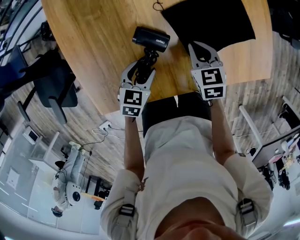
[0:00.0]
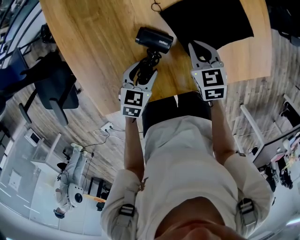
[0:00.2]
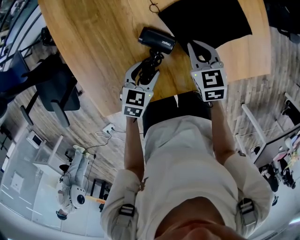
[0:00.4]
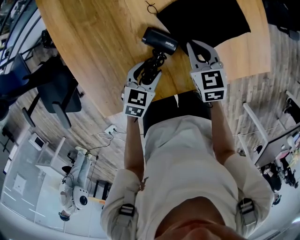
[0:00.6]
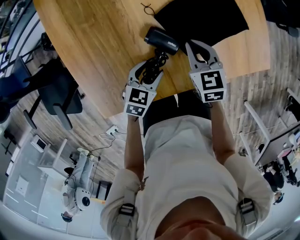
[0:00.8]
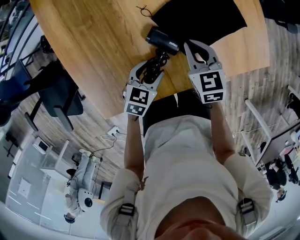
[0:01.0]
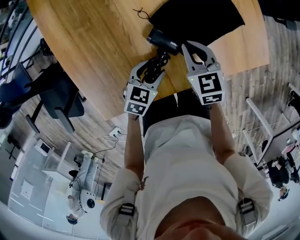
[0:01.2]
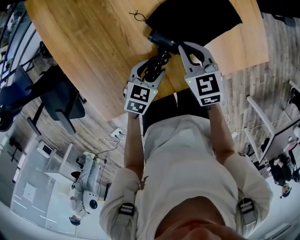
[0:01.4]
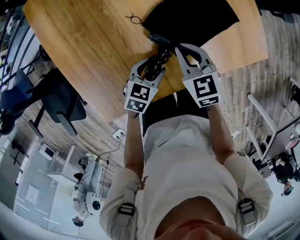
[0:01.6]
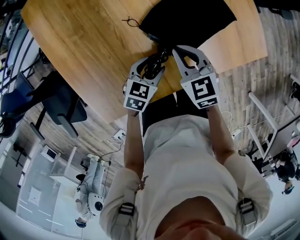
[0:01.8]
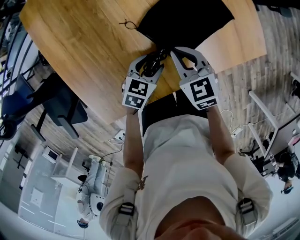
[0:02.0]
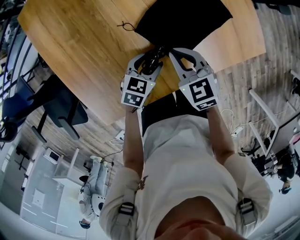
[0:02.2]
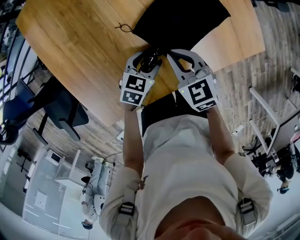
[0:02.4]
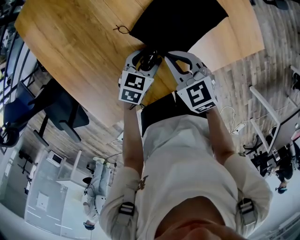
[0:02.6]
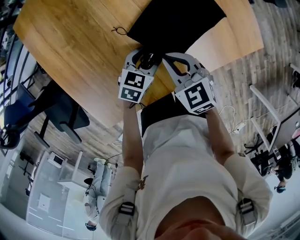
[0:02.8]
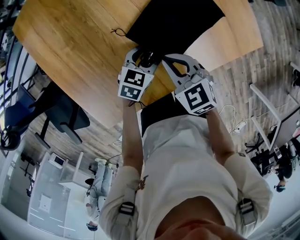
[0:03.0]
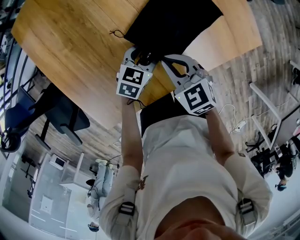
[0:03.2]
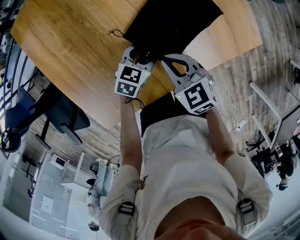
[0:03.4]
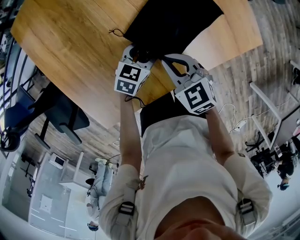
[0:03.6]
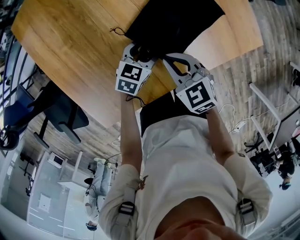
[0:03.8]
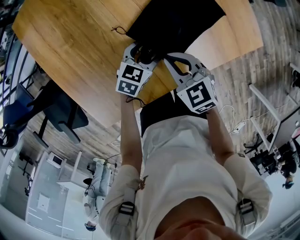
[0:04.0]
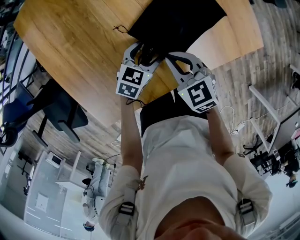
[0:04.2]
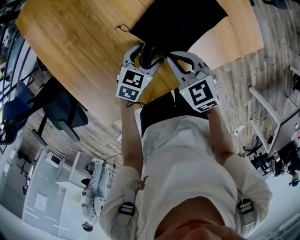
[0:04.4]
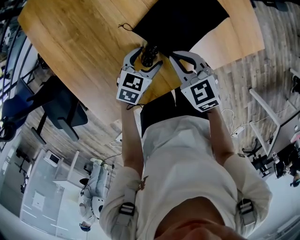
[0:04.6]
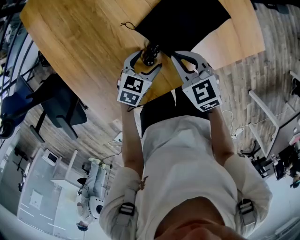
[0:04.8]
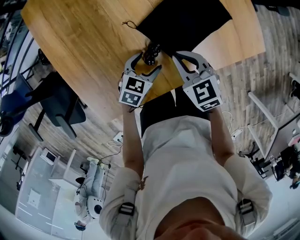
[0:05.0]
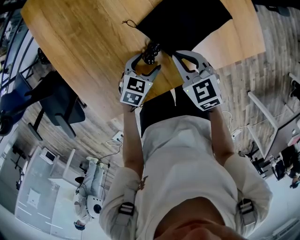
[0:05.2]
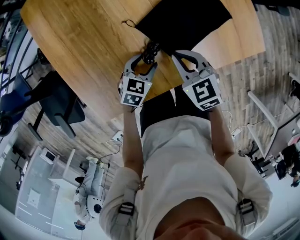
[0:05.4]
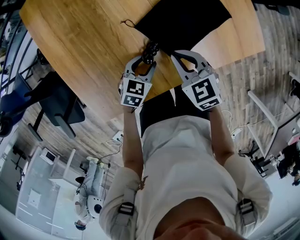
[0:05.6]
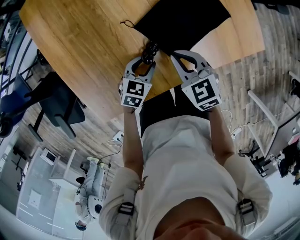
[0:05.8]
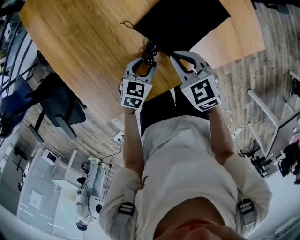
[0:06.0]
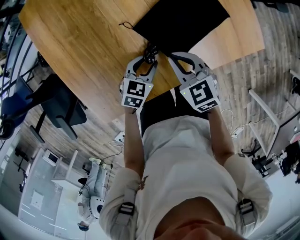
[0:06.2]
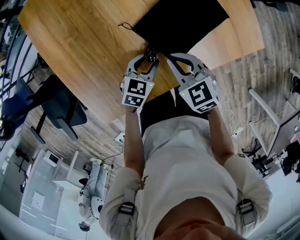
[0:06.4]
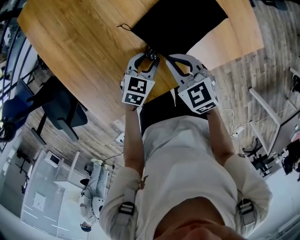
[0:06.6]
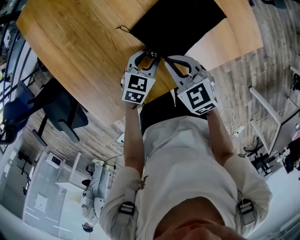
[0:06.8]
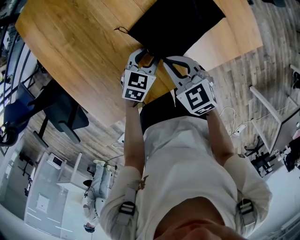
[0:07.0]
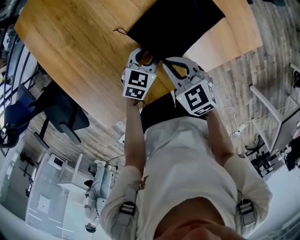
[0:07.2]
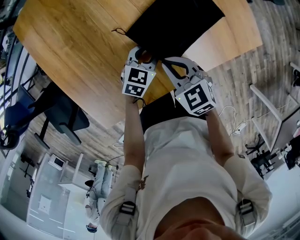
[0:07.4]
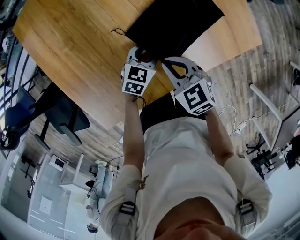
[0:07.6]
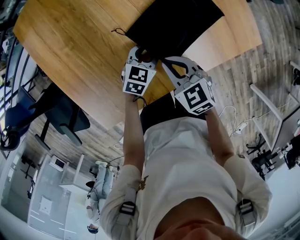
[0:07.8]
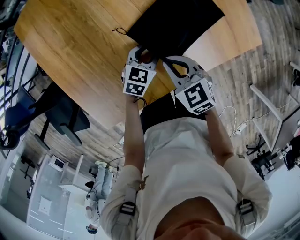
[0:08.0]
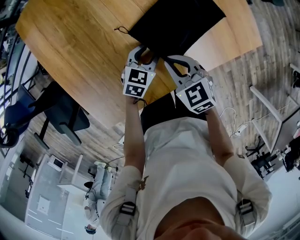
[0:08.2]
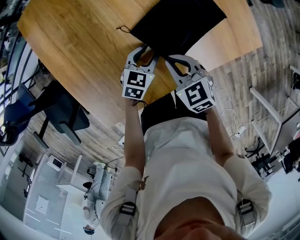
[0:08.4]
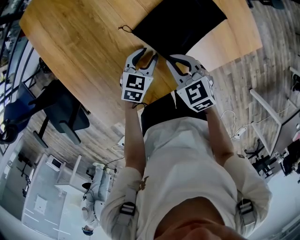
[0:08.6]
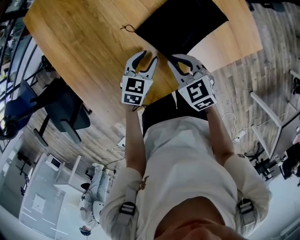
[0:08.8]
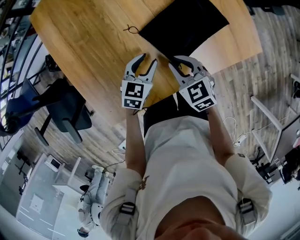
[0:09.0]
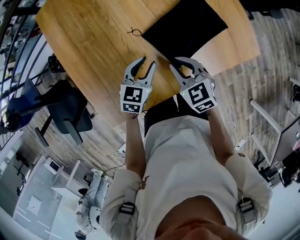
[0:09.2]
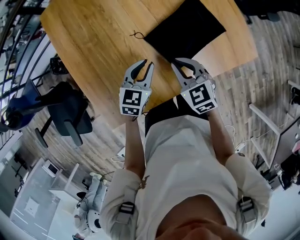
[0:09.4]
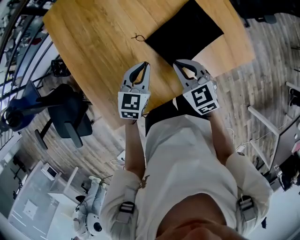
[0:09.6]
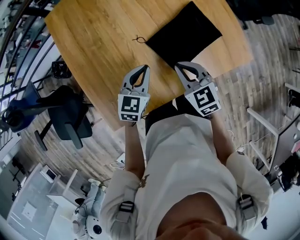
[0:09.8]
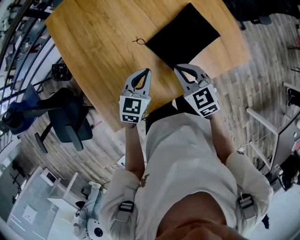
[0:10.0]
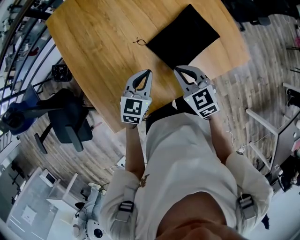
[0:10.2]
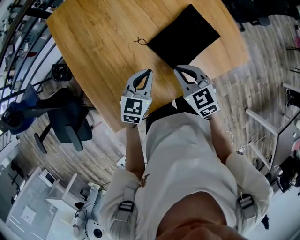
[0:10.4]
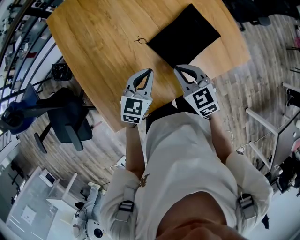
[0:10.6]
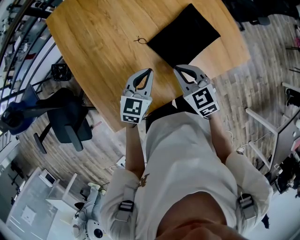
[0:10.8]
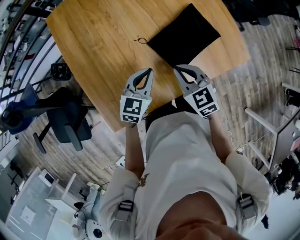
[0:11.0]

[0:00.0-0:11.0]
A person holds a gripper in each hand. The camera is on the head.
0:00.0 to 0:01.6: The right gripper moves some 5 cm; the left gripper travels to the right by roughly 10 cm.
0:01.6 to 0:03.2: The left gripper shifts some 5 cm forward.
0:03.2 to 0:04.8: The left gripper shifts roughly 5 cm backward.
0:04.8 to 0:06.2: The left gripper closes its fingers.
0:06.2 to 0:07.8: The left gripper goes about 5 cm forward.
0:07.8 to 0:09.4: The right gripper heads upward, covering roughly 5 cm; the left gripper travels upward and to the left by some 15 cm.
0:09.4 to 0:11.0: The left gripper goes roughly 5 cm upward.

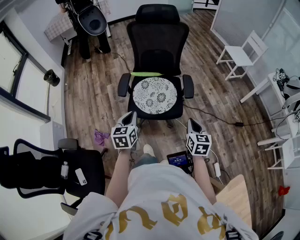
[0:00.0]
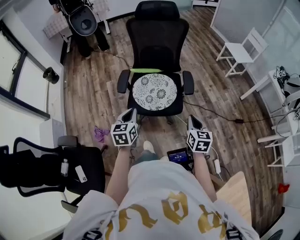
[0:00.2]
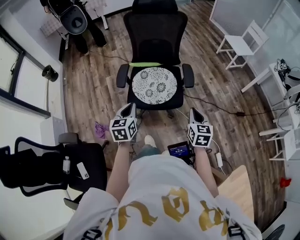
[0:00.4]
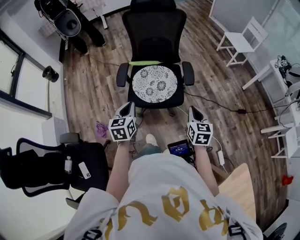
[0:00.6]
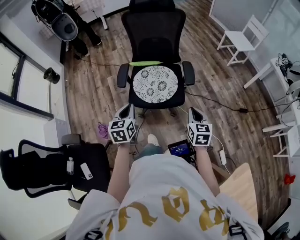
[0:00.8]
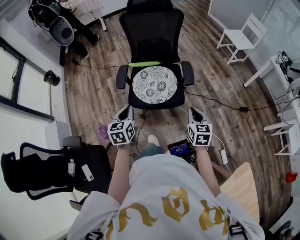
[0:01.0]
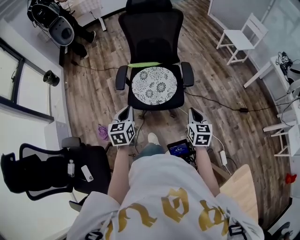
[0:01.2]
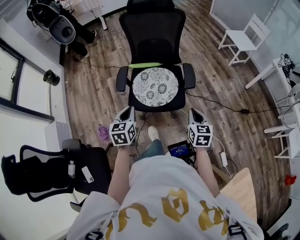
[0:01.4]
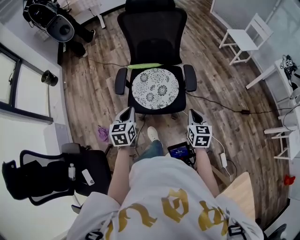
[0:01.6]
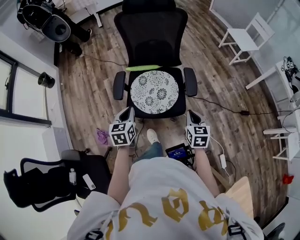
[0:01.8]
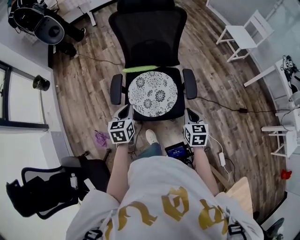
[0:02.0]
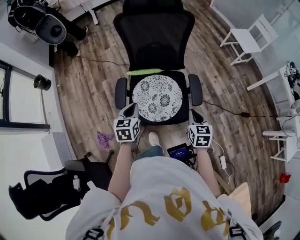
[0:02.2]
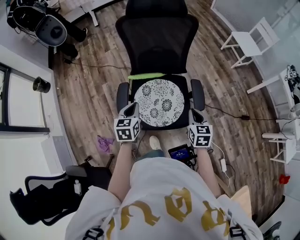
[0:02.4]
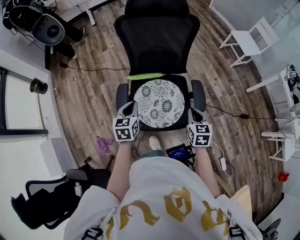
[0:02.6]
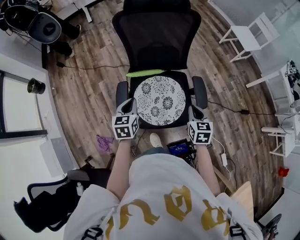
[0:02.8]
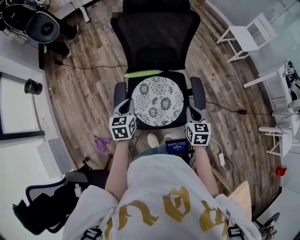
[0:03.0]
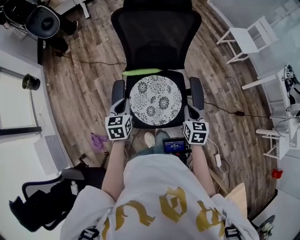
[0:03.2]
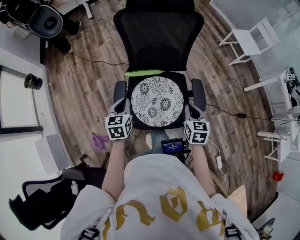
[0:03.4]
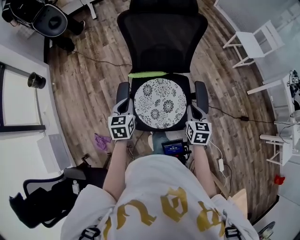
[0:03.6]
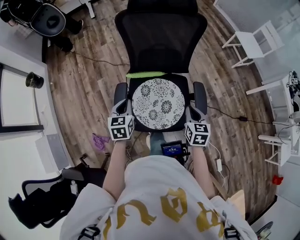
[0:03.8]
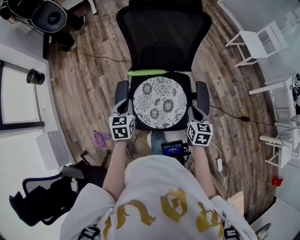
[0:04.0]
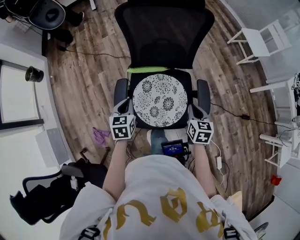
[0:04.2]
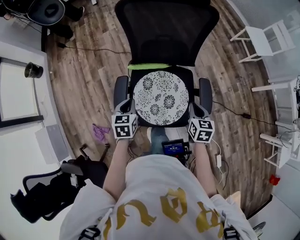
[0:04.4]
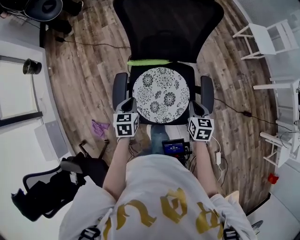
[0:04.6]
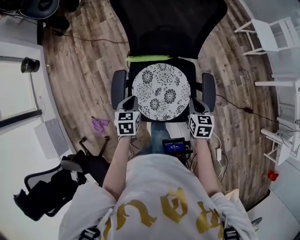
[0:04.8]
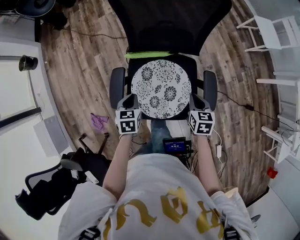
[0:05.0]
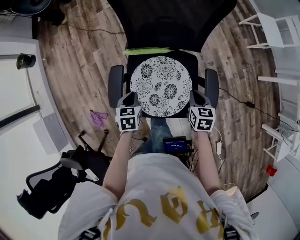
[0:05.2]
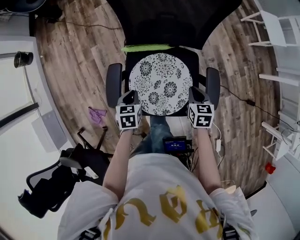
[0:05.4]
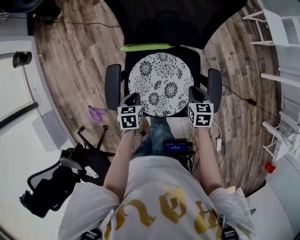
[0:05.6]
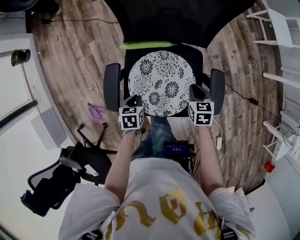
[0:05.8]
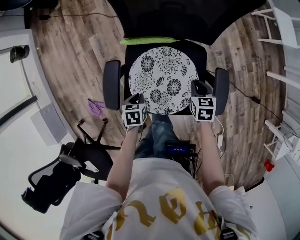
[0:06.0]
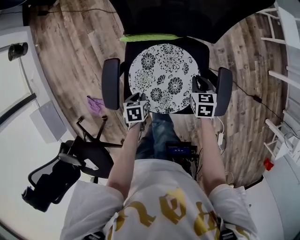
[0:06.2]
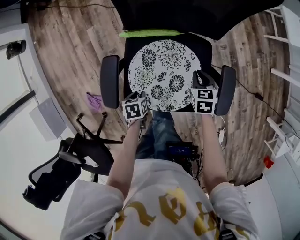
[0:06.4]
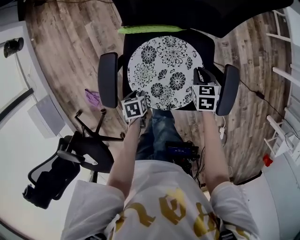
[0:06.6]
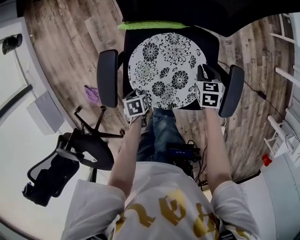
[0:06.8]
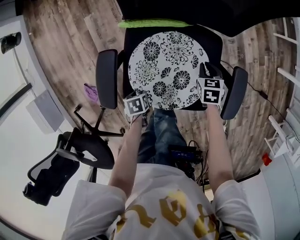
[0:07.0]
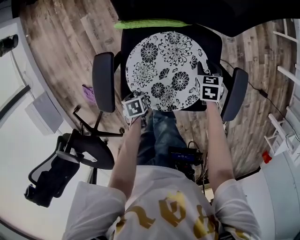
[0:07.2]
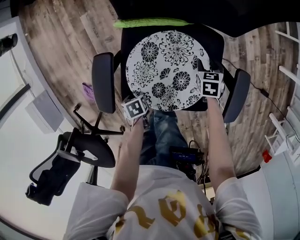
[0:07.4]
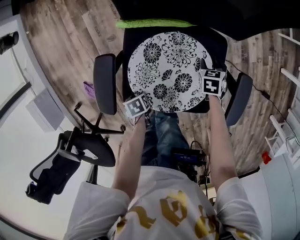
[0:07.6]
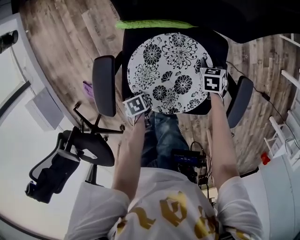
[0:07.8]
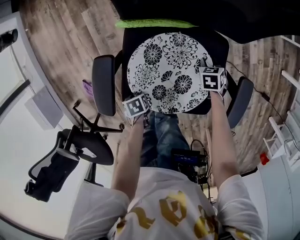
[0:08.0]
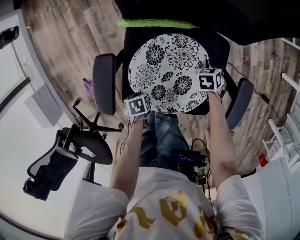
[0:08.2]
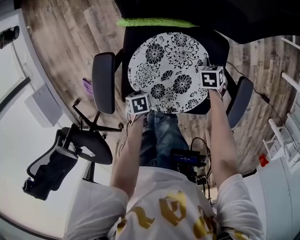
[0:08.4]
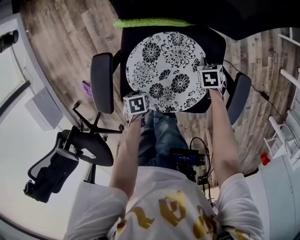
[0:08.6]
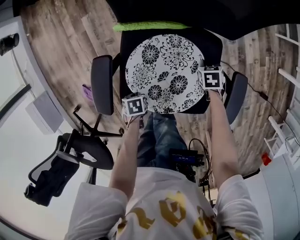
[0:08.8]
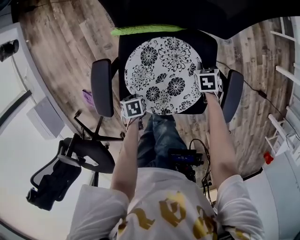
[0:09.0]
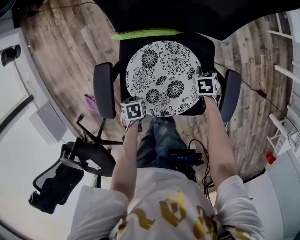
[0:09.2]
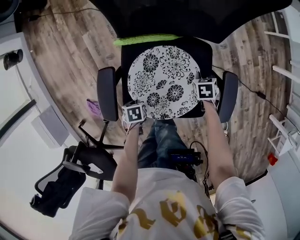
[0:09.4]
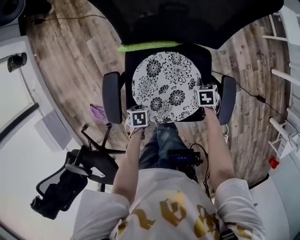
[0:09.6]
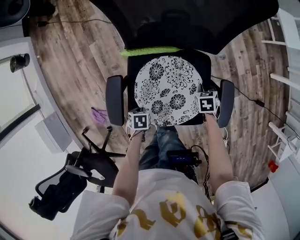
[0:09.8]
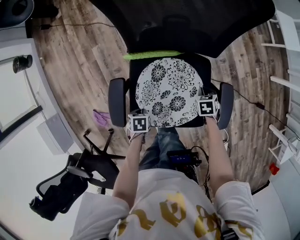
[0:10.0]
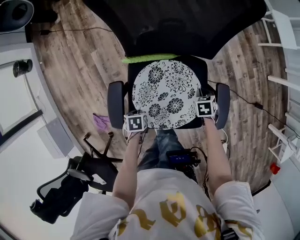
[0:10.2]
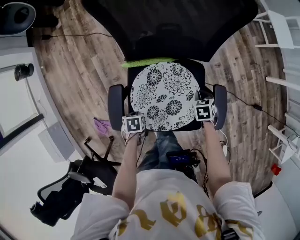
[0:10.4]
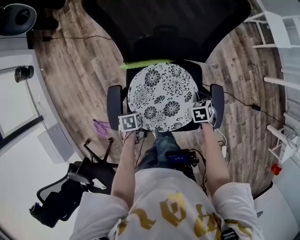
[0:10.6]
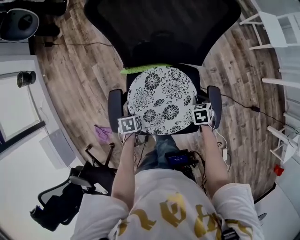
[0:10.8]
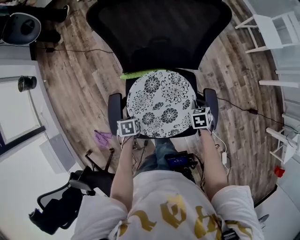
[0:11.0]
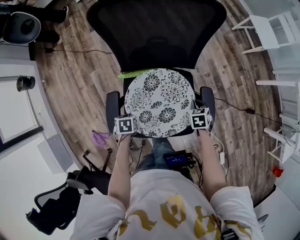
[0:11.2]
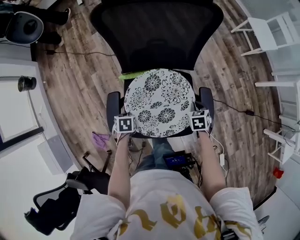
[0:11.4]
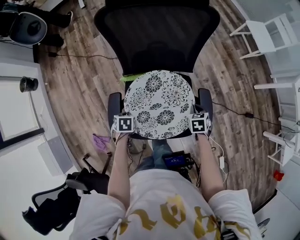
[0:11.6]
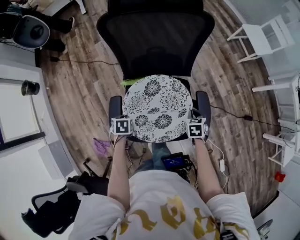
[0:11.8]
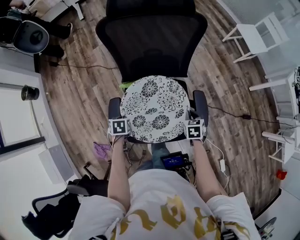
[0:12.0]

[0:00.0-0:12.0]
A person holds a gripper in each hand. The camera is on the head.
0:00.0 to 0:01.6: The two grippers go about 5 cm forward.
0:01.6 to 0:03.0: The left gripper goes some 25 cm forward. The right gripper is displaced forward and to the left by some 20 cm.
0:03.0 to 0:04.4: The left gripper heads downward, covering roughly 5 cm, while the right gripper is displaced forward and downward by roughly 10 cm.
0:04.4 to 0:06.0: The right gripper goes about 20 cm downward and forward; the left gripper shifts about 20 cm downward, and turns by about 30 degrees.
0:06.0 to 0:07.6: The grippers both shift downward by approximately 15 cm. The right gripper opens; the left gripper changes its angle by some 30 degrees, and opens its fingers.
0:07.6 to 0:09.0: The right gripper closes up; the left gripper closes.
0:09.0 to 0:10.4: The grippers both shift upward by some 10 cm.
0:10.4 to 0:12.0: Both grippers move upward, some 15 cm.

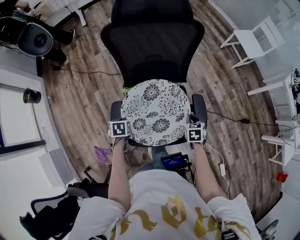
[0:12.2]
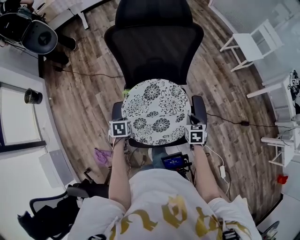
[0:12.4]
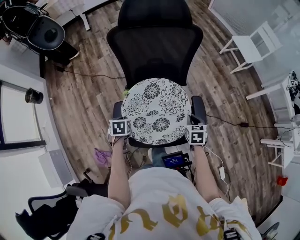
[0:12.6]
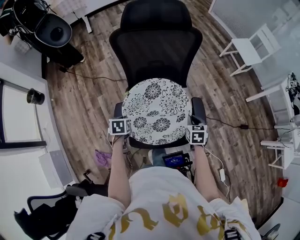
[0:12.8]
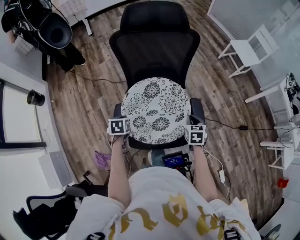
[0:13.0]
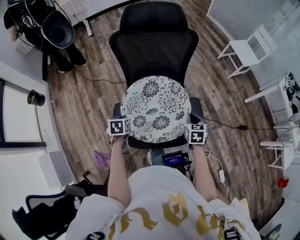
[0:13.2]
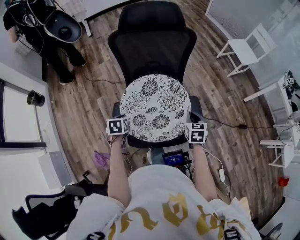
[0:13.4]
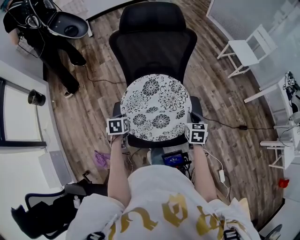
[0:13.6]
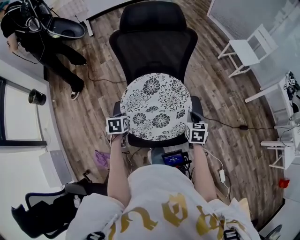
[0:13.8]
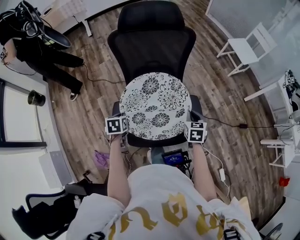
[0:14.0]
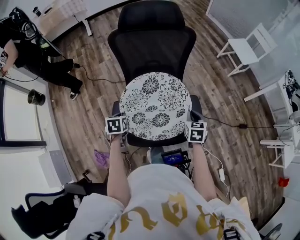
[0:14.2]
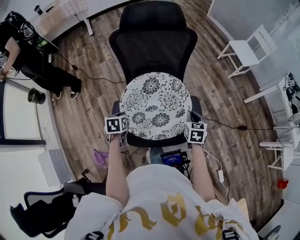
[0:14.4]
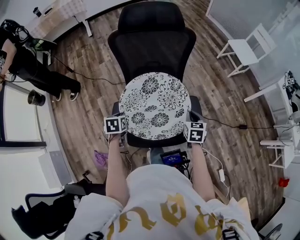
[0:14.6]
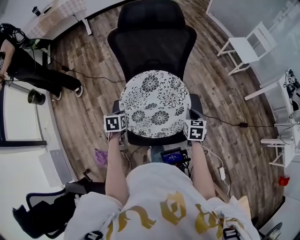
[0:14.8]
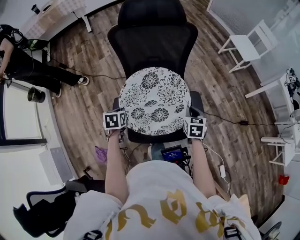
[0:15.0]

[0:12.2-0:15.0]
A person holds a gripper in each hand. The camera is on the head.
0:12.2 to 0:13.6: Both grippers travel together upward, about 10 cm.
0:13.6 to 0:15.0: Neither gripper changes place.
